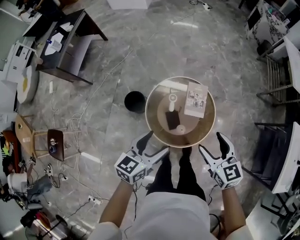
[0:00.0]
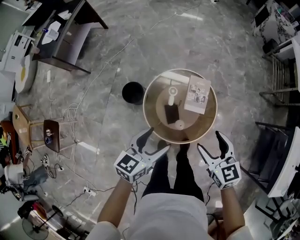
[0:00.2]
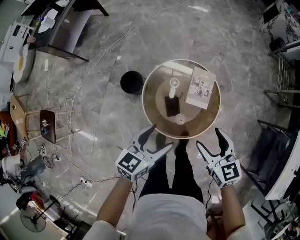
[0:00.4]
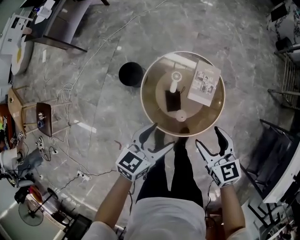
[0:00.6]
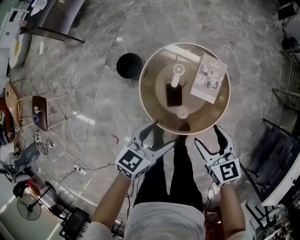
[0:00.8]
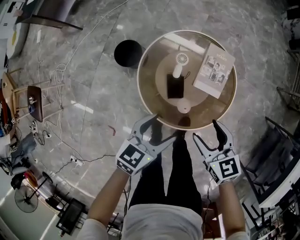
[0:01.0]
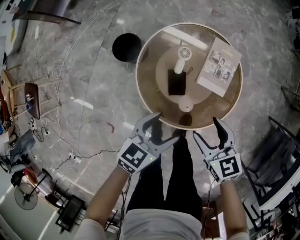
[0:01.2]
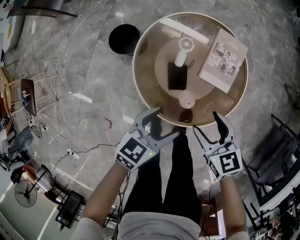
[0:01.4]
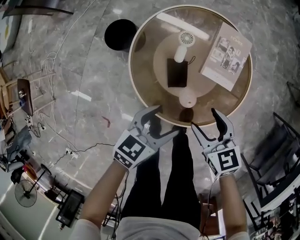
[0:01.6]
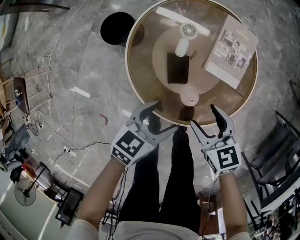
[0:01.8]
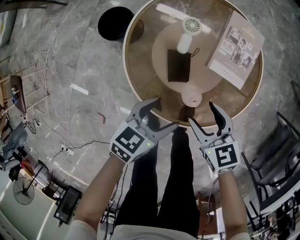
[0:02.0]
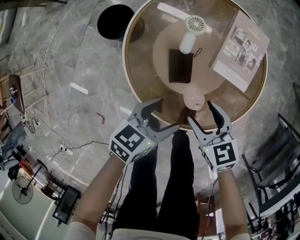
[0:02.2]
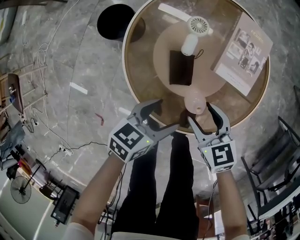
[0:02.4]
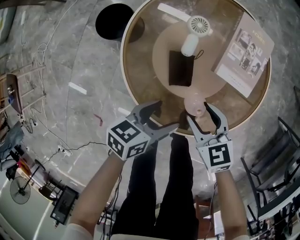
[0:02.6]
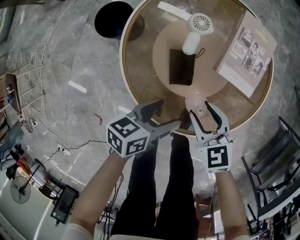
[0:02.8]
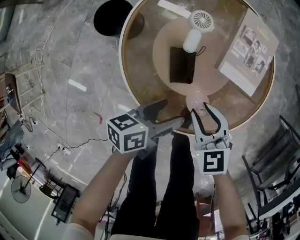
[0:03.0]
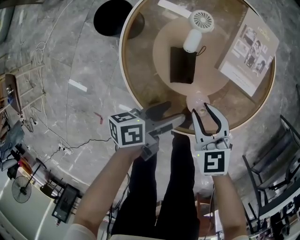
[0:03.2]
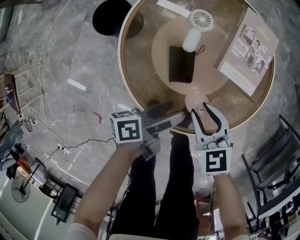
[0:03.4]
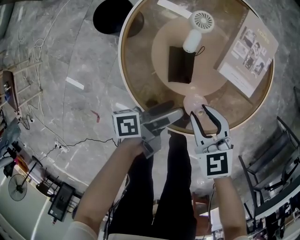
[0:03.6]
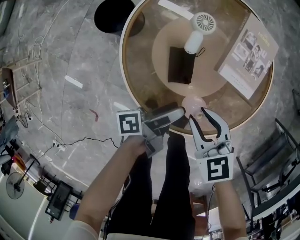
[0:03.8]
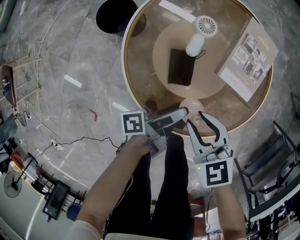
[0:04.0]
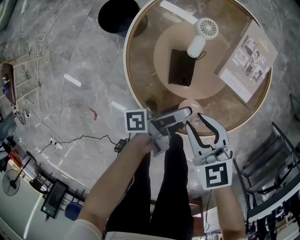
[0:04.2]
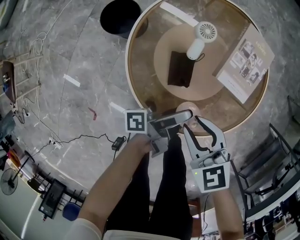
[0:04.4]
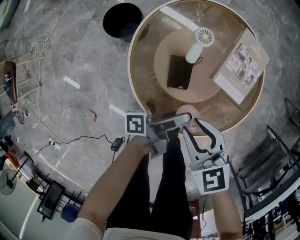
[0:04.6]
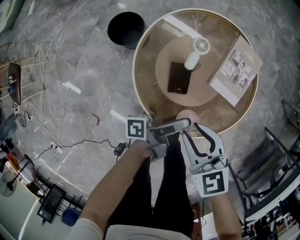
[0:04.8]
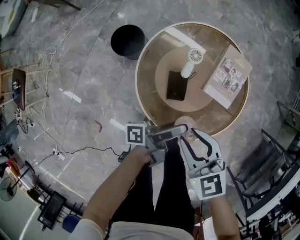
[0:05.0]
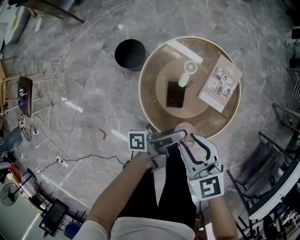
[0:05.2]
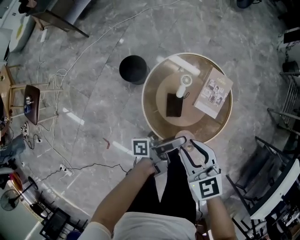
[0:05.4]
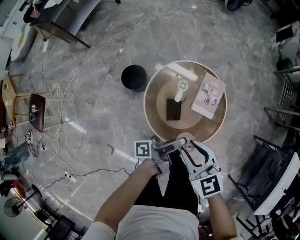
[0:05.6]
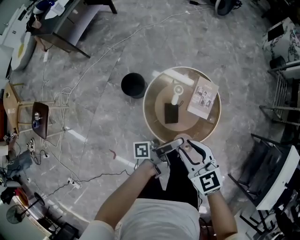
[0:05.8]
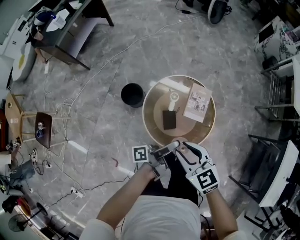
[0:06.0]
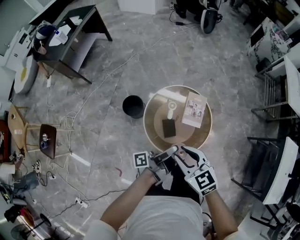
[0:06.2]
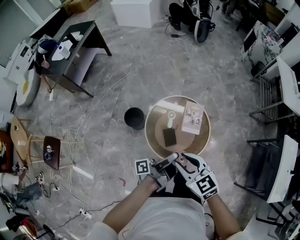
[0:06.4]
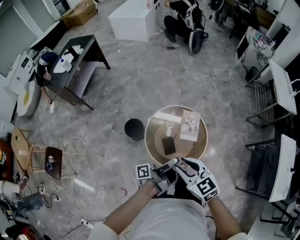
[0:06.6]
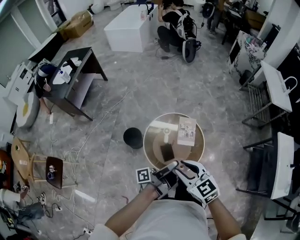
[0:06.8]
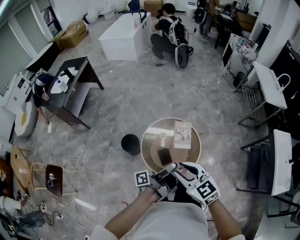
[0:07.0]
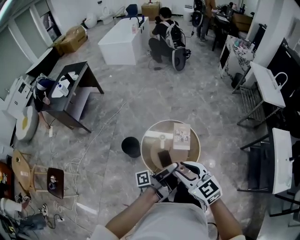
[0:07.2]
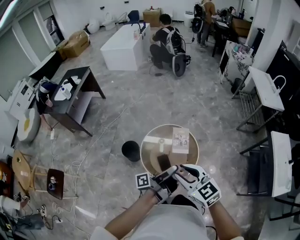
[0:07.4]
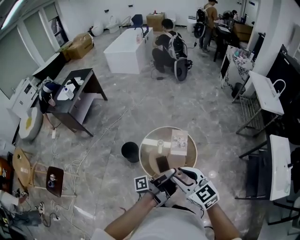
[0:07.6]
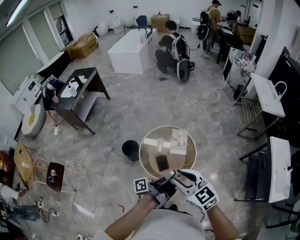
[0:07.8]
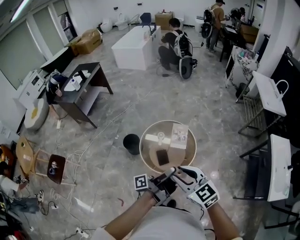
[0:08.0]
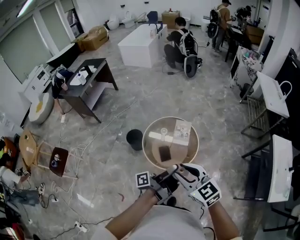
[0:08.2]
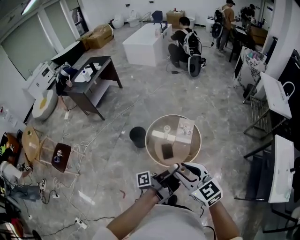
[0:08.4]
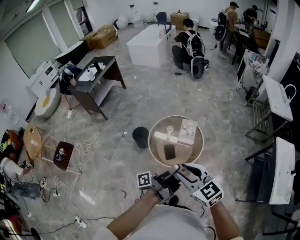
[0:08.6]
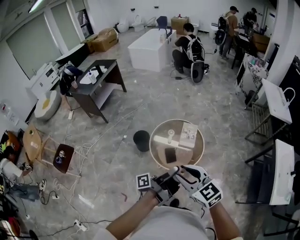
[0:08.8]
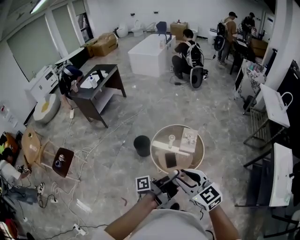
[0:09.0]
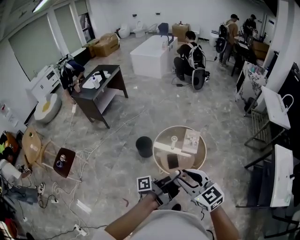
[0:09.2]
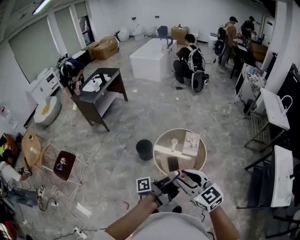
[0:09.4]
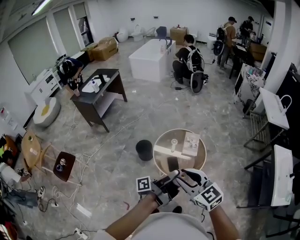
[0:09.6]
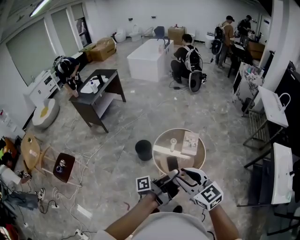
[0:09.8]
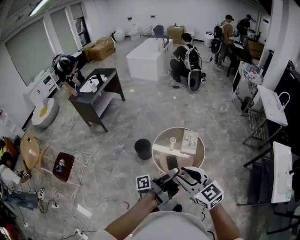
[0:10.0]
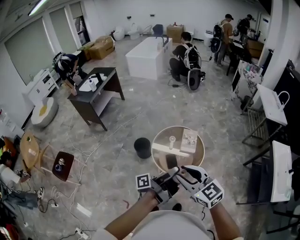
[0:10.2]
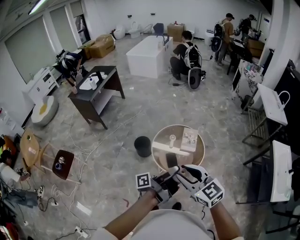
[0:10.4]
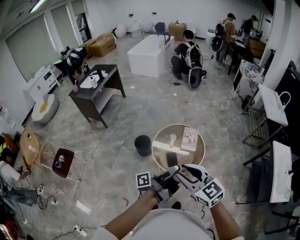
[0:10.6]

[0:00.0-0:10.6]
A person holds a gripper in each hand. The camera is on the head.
0:00.0 to 0:01.6: The grippers both shift downward by approximately 40 cm. The right gripper changes its angle by some 20 degrees.
0:01.6 to 0:03.0: Both grippers move downward, some 15 cm. The right gripper closes up, while the left gripper swivels approximately 30 degrees.
0:03.0 to 0:04.6: The left gripper is displaced upward by roughly 5 cm, and points its fingers about 30 degrees further upward, while the right gripper travels upward by approximately 10 cm.
0:04.6 to 0:06.0: Both grippers move upward, some 35 cm.
0:06.0 to 0:07.6: Both grippers move upward and backward, approximately 25 cm.
0:07.6 to 0:09.0: The grippers both shift backward by roughly 15 cm.
0:09.0 to 0:10.6: The grippers stay close to where they were, moving slightly.

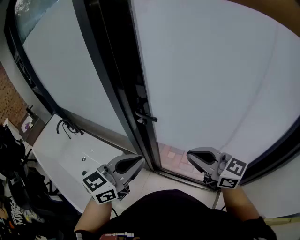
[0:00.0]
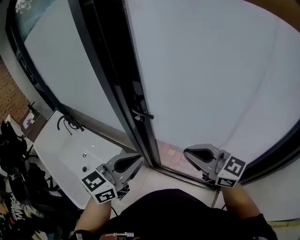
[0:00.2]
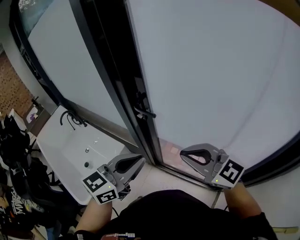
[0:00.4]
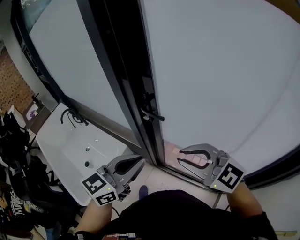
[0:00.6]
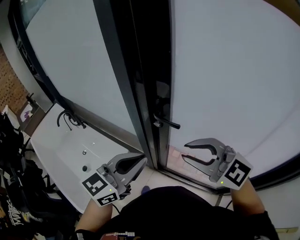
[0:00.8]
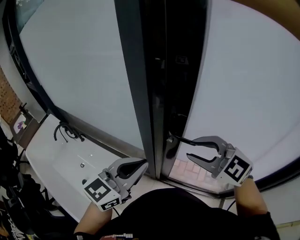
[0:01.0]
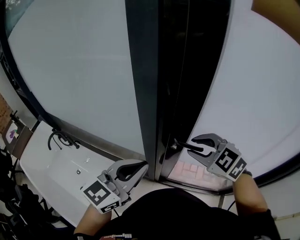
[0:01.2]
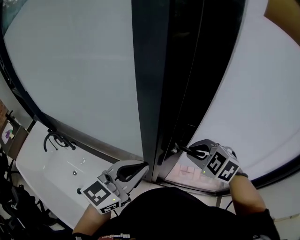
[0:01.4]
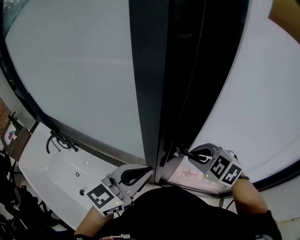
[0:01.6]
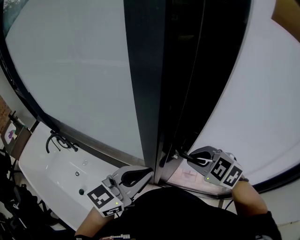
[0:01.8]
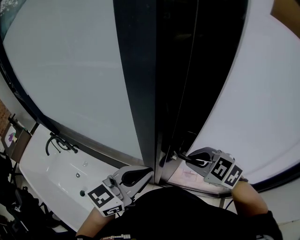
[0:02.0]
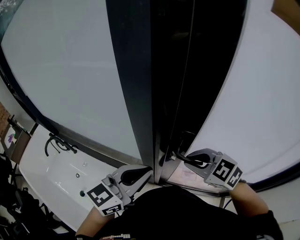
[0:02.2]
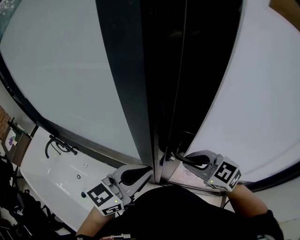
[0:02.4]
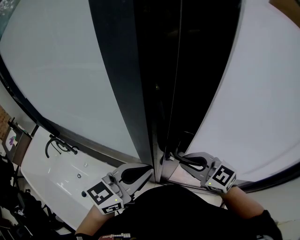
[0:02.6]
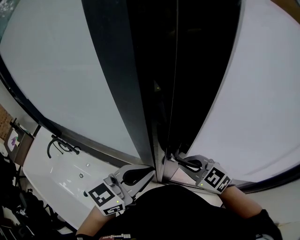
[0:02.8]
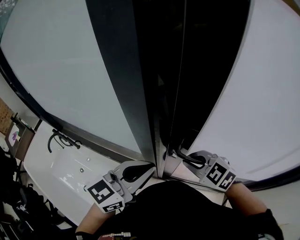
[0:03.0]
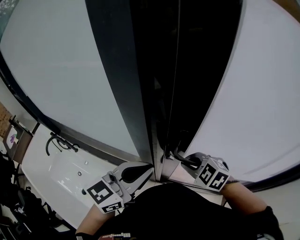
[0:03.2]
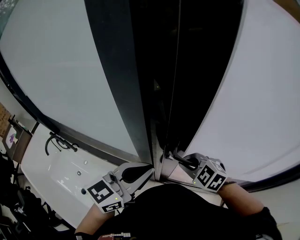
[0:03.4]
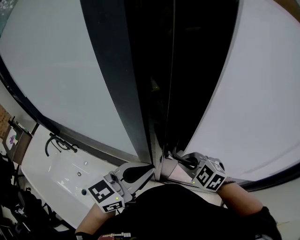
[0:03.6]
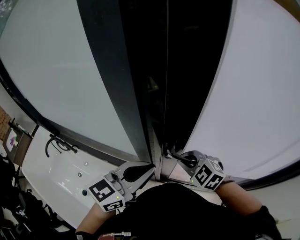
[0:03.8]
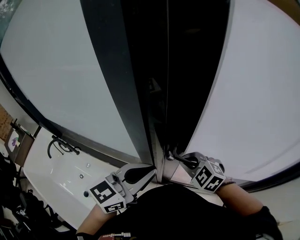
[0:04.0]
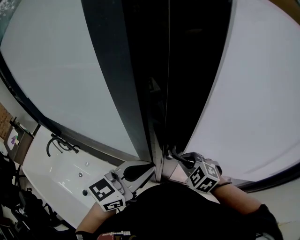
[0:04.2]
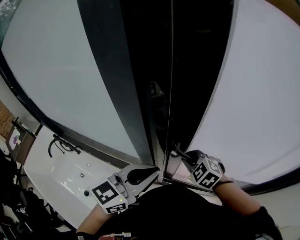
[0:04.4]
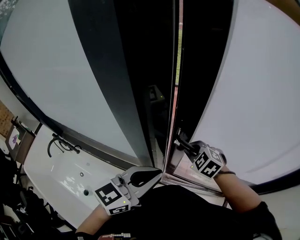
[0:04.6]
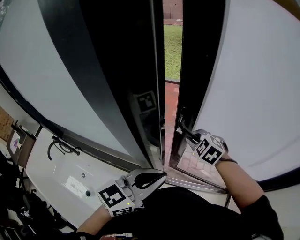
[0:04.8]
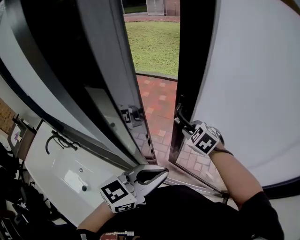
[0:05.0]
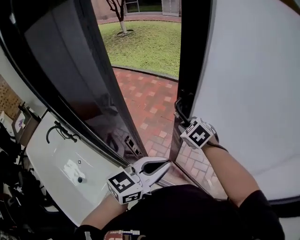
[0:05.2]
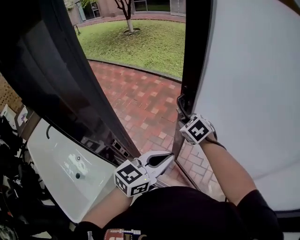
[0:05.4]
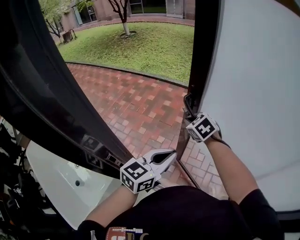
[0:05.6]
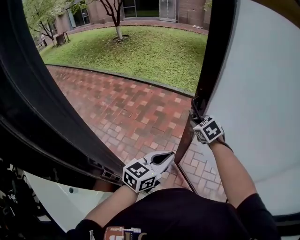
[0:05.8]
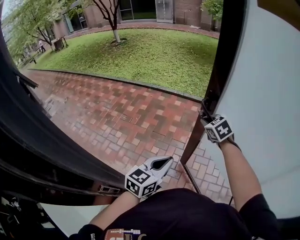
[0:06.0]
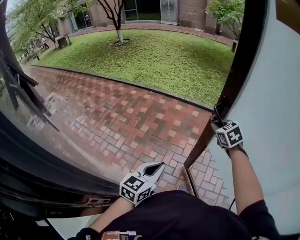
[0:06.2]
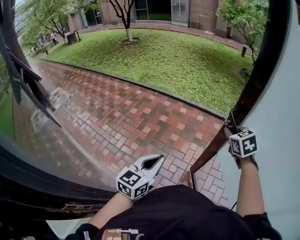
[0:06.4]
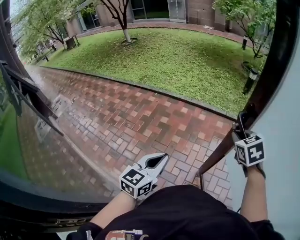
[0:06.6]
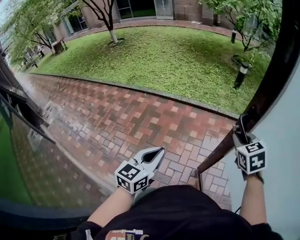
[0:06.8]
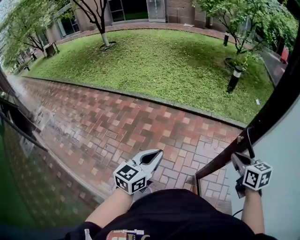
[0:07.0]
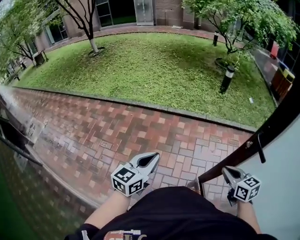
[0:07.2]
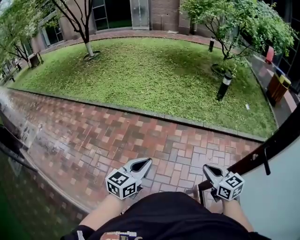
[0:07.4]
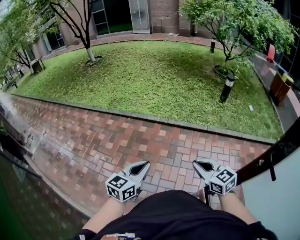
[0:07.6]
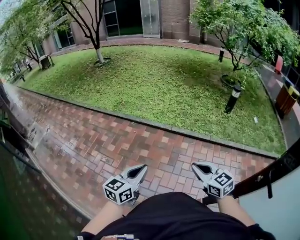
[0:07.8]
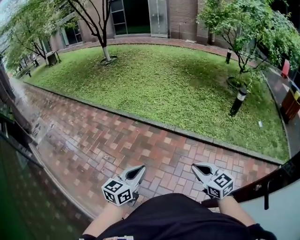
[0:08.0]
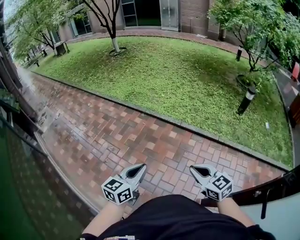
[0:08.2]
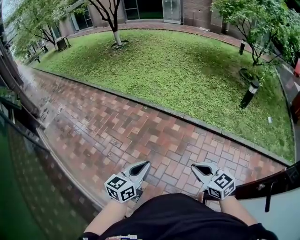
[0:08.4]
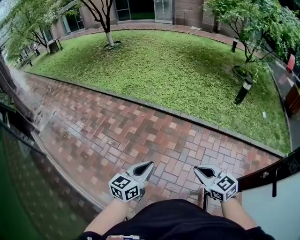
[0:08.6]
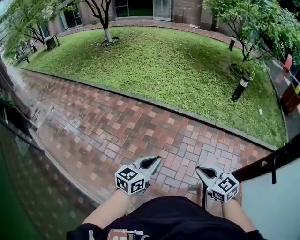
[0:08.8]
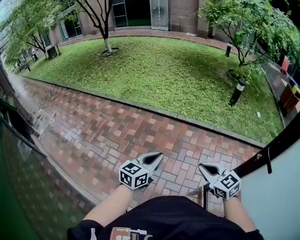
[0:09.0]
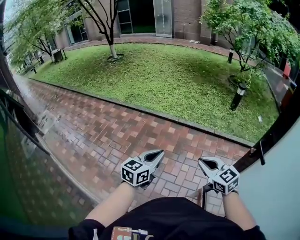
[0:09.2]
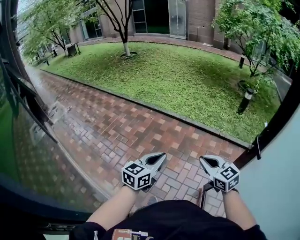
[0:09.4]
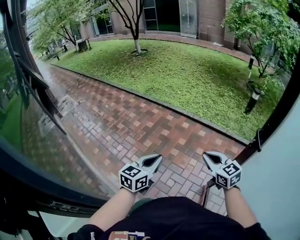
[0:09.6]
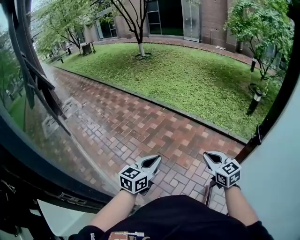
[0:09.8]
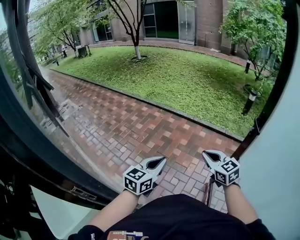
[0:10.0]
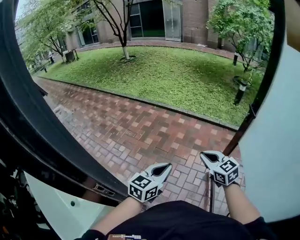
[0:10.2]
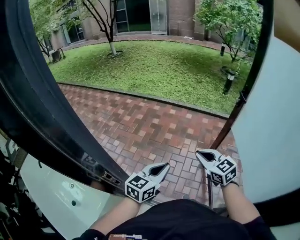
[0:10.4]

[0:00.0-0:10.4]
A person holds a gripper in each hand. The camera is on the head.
0:00.0 to 0:01.4: The two grippers go about 25 cm forward and to the left. The right gripper points its fingers about 50 degrees further downward.
0:01.4 to 0:03.0: The left gripper moves about 5 cm.
0:03.0 to 0:04.4: The right gripper is displaced downward by some 5 cm.
0:04.4 to 0:06.0: The left gripper heads forward, to the right and downward, covering roughly 40 cm; the right gripper shifts some 50 cm forward and to the right, and turns by about 20 degrees.
0:06.0 to 0:07.4: The left gripper moves forward, some 40 cm. Meanwhile the right gripper goes approximately 20 cm forward, travels to the right and back again, roughly 25 cm each way, and swivels roughly 30 degrees.
0:07.4 to 0:09.0: The right gripper goes some 5 cm to the left, and goes forward and returns, roughly 10 cm each way.
0:09.0 to 0:10.4: The two grippers go some 40 cm backward.

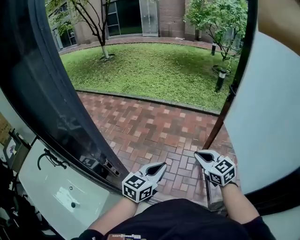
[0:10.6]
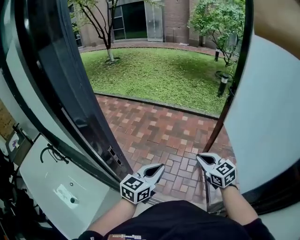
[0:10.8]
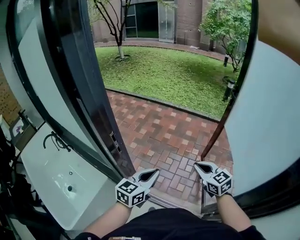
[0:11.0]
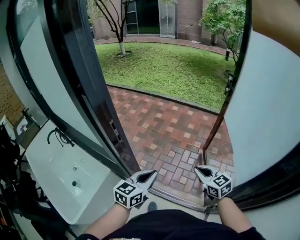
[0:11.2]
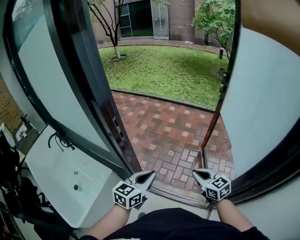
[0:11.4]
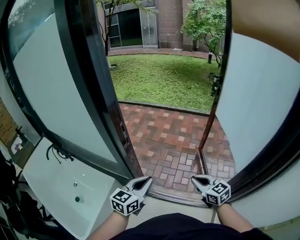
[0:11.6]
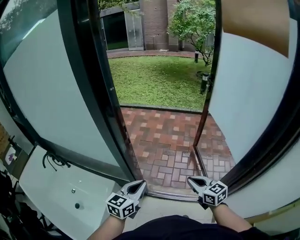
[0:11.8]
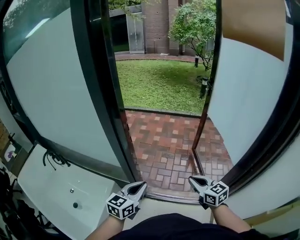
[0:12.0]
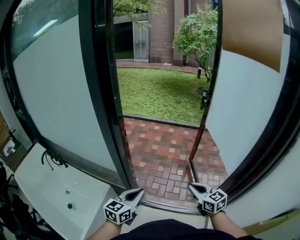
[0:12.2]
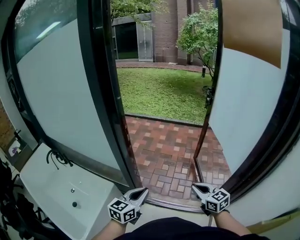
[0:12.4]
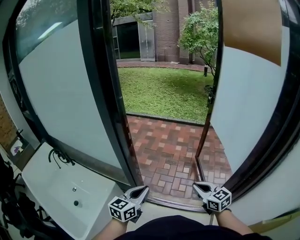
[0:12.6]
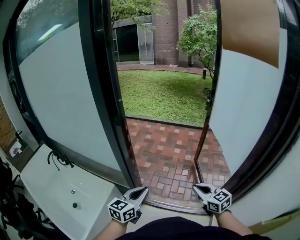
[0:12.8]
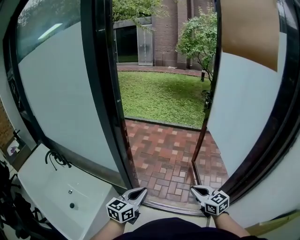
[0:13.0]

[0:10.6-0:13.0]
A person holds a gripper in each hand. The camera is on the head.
0:10.6 to 0:11.8: The right gripper heads backward, covering roughly 30 cm. Meanwhile the left gripper heads backward and to the left, covering approximately 30 cm.
0:11.8 to 0:13.0: The right gripper goes roughly 5 cm to the right; the left gripper shifts by roughly 5 cm.
